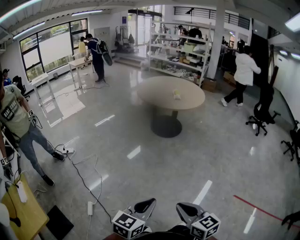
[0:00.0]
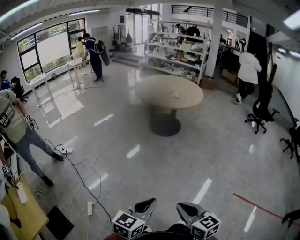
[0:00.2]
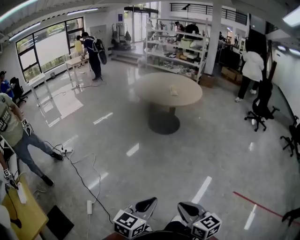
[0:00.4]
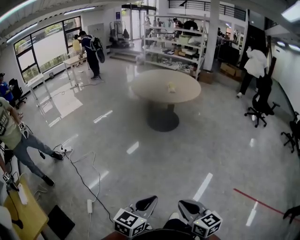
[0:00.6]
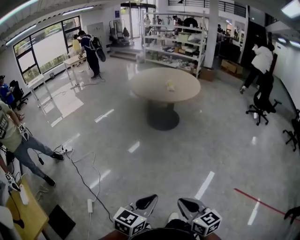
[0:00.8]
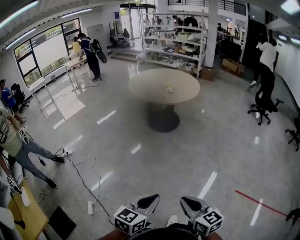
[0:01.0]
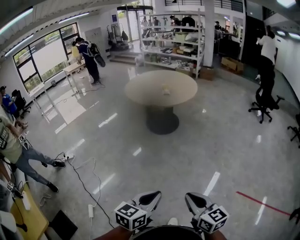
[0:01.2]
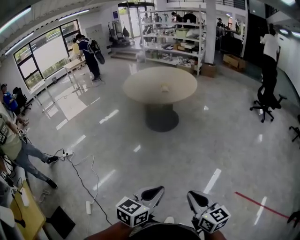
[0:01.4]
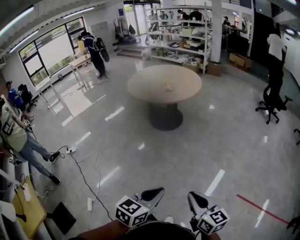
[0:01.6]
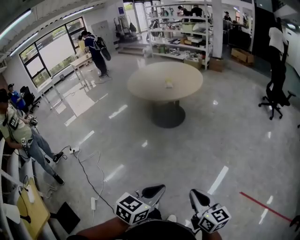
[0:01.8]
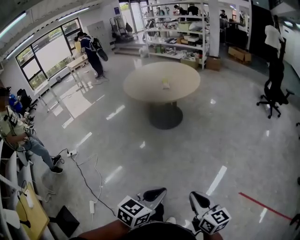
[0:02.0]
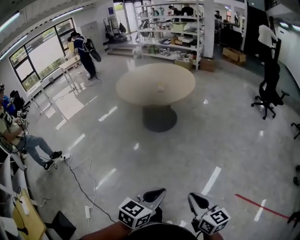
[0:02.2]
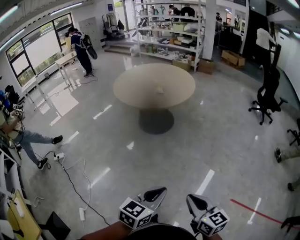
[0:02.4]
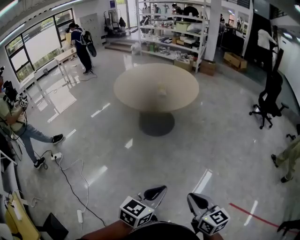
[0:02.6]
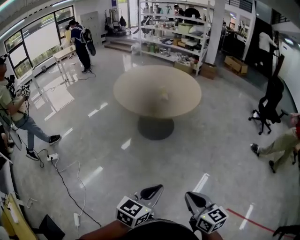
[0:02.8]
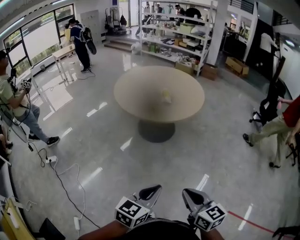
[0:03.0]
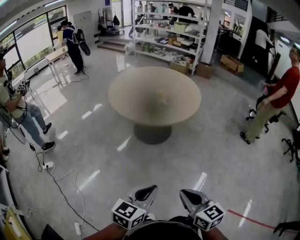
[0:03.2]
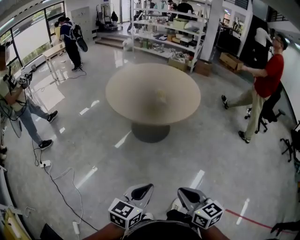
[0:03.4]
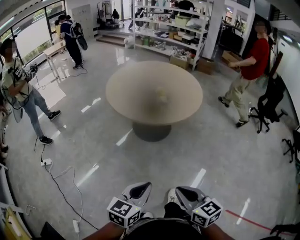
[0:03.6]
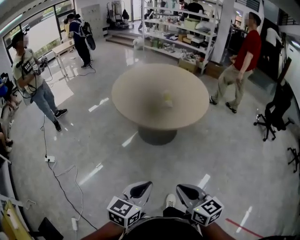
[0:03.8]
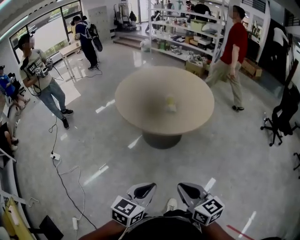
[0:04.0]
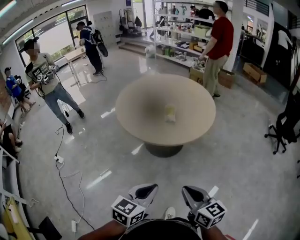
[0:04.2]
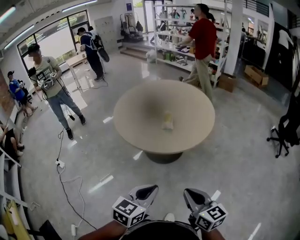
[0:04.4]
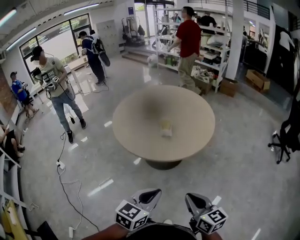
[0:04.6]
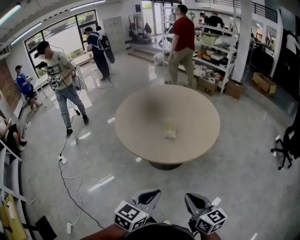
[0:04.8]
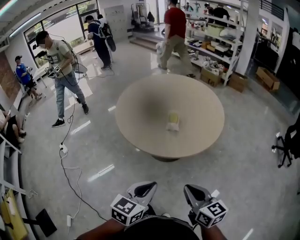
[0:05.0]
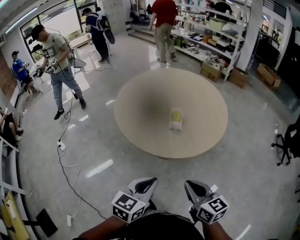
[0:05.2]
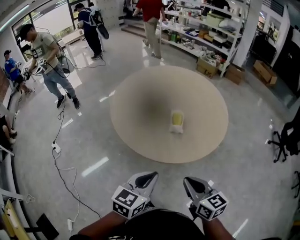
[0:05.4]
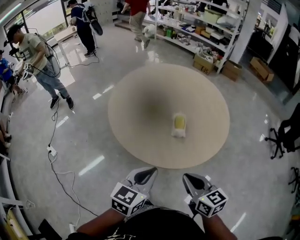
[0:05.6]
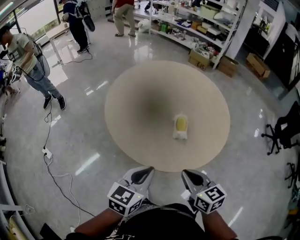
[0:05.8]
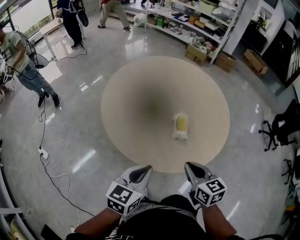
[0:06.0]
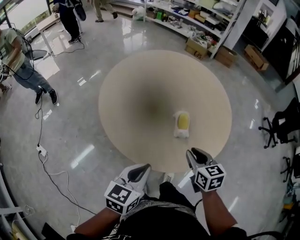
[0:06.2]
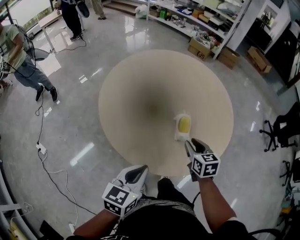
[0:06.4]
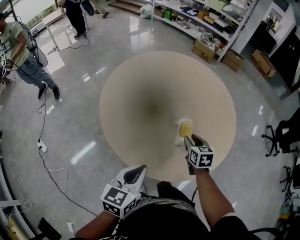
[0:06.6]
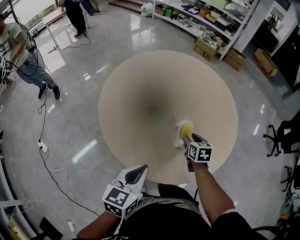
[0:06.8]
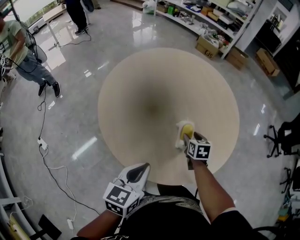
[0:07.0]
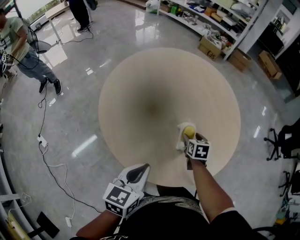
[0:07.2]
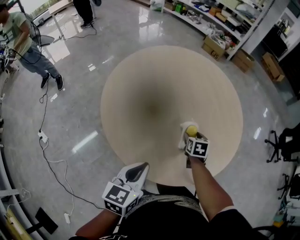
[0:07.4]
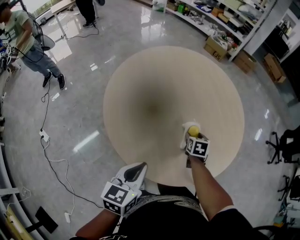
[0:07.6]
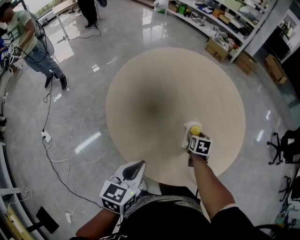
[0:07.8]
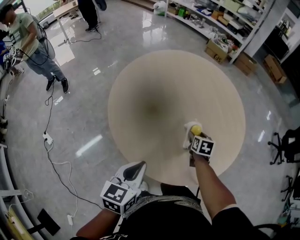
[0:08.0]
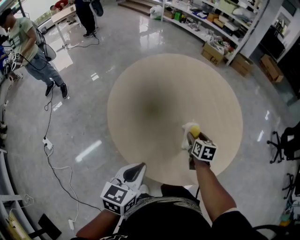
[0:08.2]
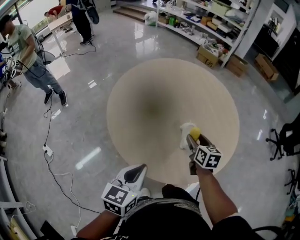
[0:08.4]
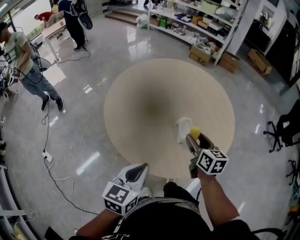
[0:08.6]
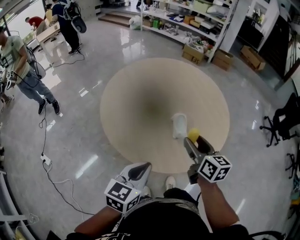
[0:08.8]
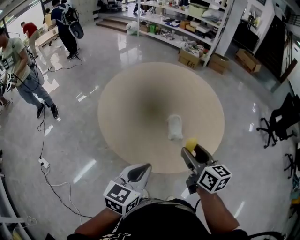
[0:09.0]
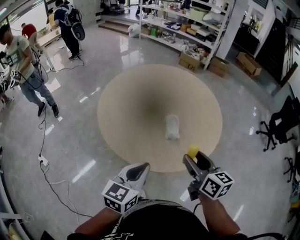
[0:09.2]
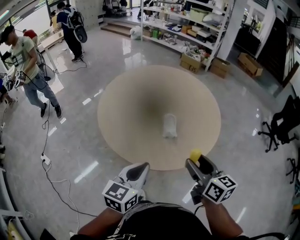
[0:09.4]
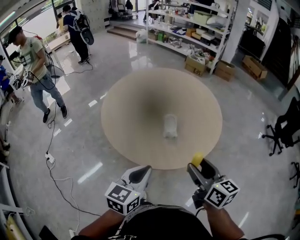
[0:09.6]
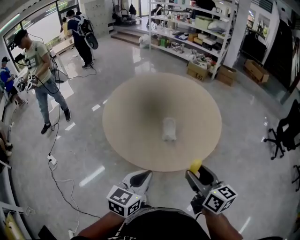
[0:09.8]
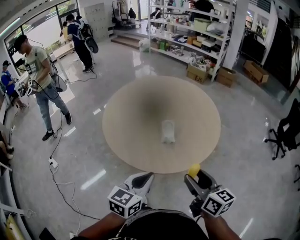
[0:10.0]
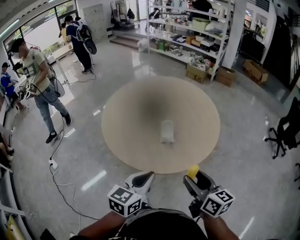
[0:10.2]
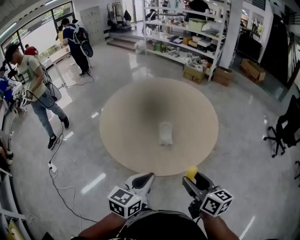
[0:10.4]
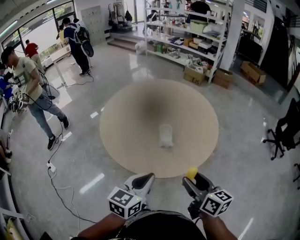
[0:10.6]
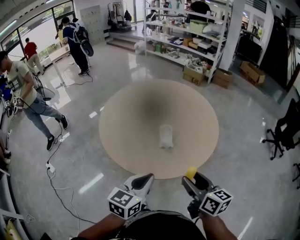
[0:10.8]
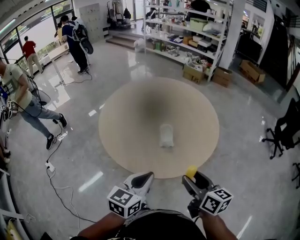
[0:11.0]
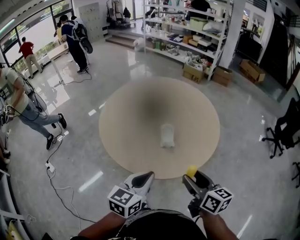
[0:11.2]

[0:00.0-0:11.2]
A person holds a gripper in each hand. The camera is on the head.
0.0 to 1.6 s: Both grippers travel together to the right and forward, approximately 30 cm.
1.6 to 3.2 s: The two grippers travel together, forward and to the left, approximately 40 cm.
3.2 to 4.8 s: The grippers both shift forward and to the right by about 30 cm.
4.8 to 6.4 s: The pair of grippers is taken forward and to the left, roughly 40 cm. The right gripper changes its angle by some 30 degrees, and opens up.
6.4 to 8.0 s: The right gripper heads forward and downward, covering about 15 cm, and opens. Meanwhile the left gripper moves to the left, approximately 5 cm.
8.0 to 9.6 s: The left gripper shifts about 20 cm to the right, backward and upward; the right gripper moves backward and upward, roughly 40 cm, and tilts its fingers some 40 degrees upward.
9.6 to 11.2 s: The grippers move only a little.

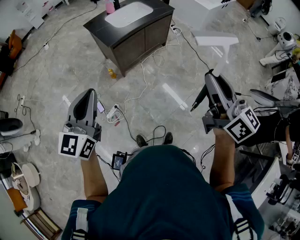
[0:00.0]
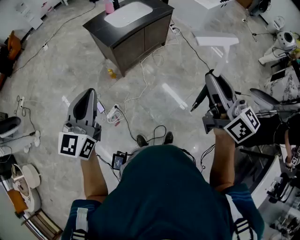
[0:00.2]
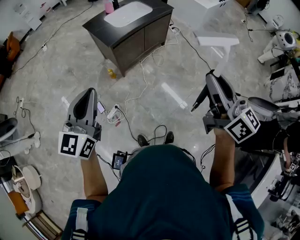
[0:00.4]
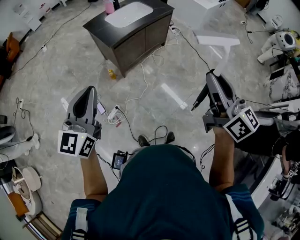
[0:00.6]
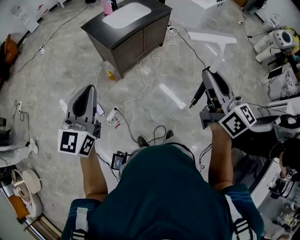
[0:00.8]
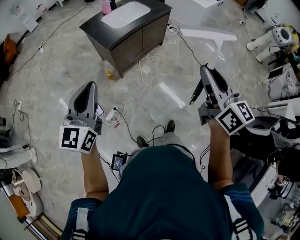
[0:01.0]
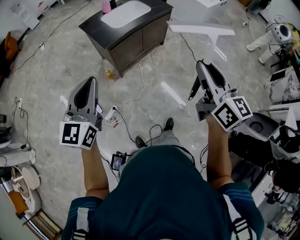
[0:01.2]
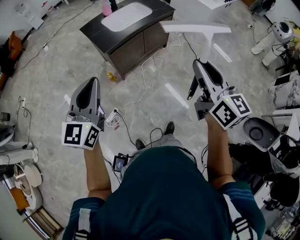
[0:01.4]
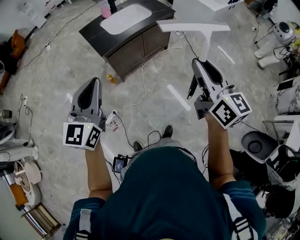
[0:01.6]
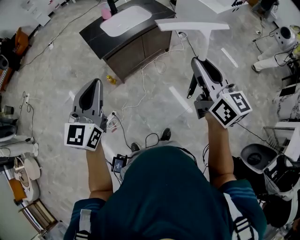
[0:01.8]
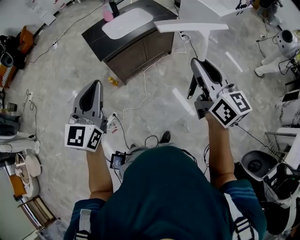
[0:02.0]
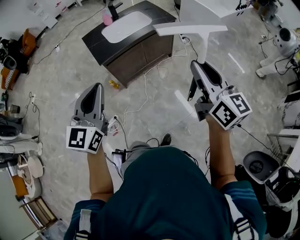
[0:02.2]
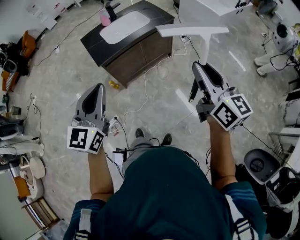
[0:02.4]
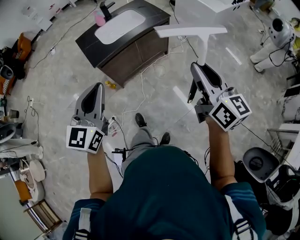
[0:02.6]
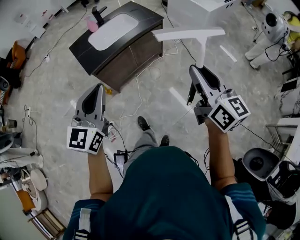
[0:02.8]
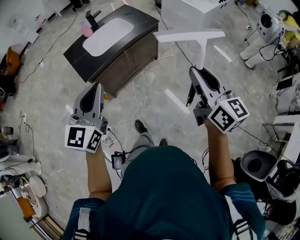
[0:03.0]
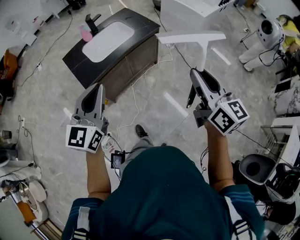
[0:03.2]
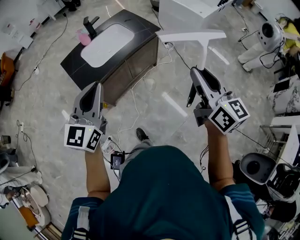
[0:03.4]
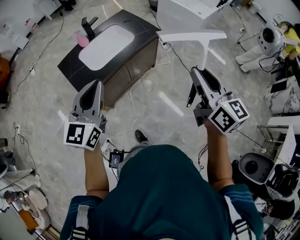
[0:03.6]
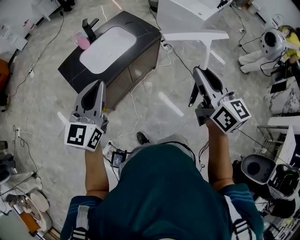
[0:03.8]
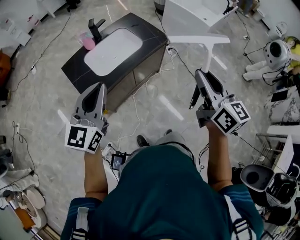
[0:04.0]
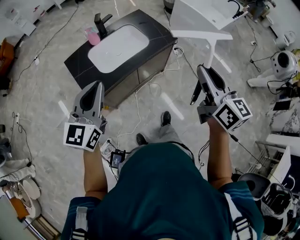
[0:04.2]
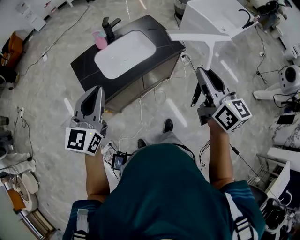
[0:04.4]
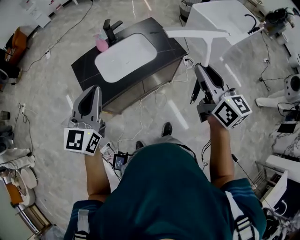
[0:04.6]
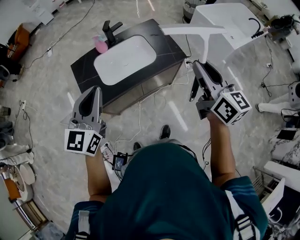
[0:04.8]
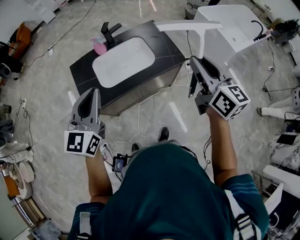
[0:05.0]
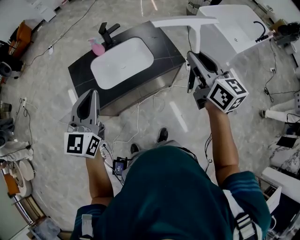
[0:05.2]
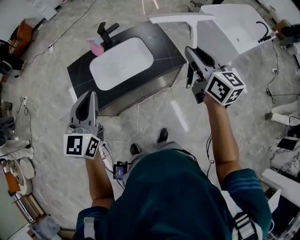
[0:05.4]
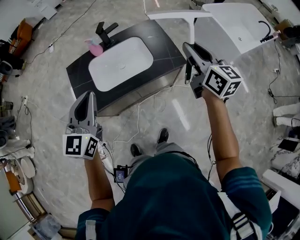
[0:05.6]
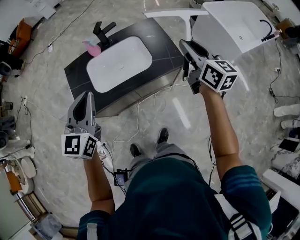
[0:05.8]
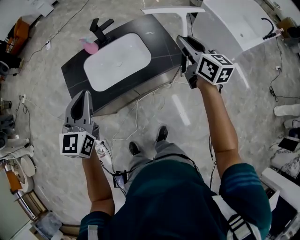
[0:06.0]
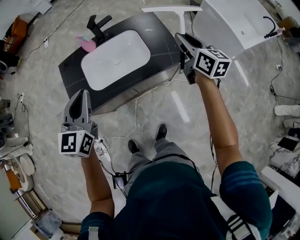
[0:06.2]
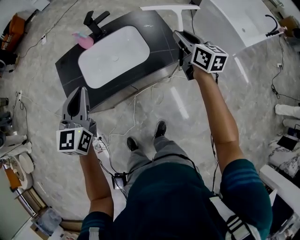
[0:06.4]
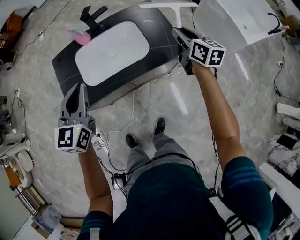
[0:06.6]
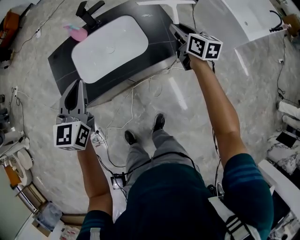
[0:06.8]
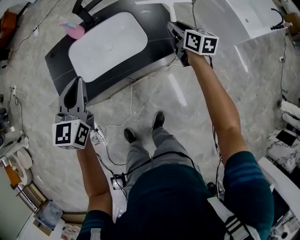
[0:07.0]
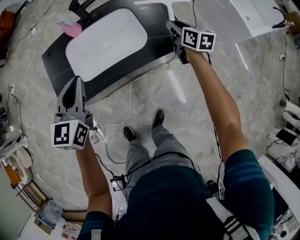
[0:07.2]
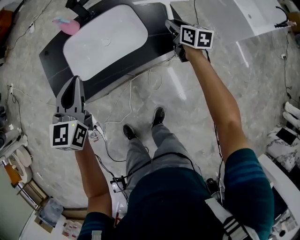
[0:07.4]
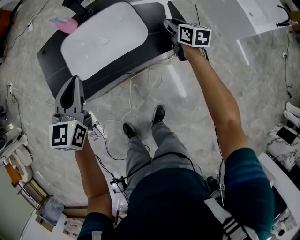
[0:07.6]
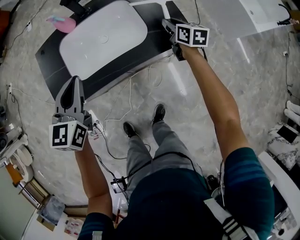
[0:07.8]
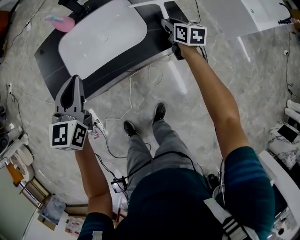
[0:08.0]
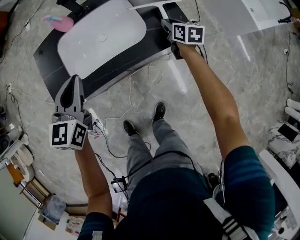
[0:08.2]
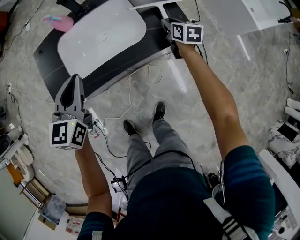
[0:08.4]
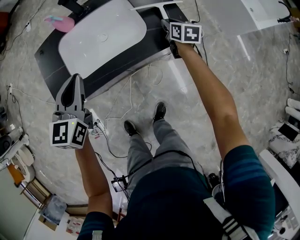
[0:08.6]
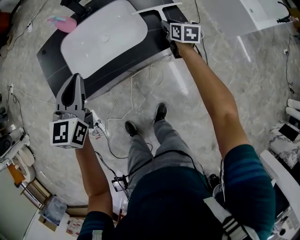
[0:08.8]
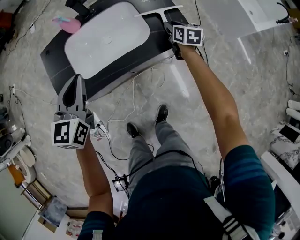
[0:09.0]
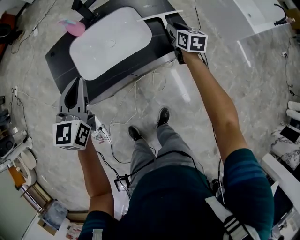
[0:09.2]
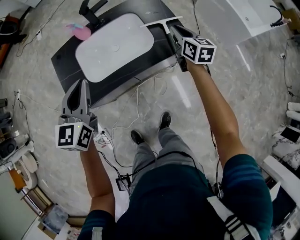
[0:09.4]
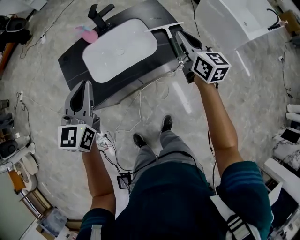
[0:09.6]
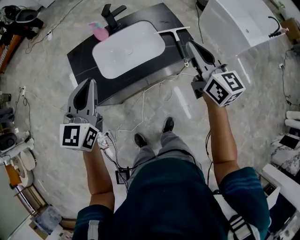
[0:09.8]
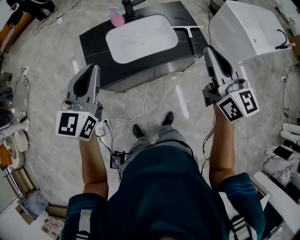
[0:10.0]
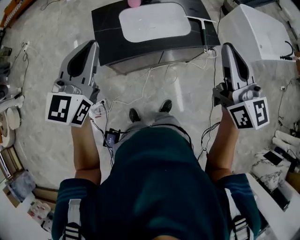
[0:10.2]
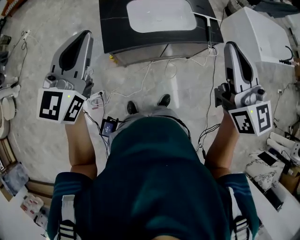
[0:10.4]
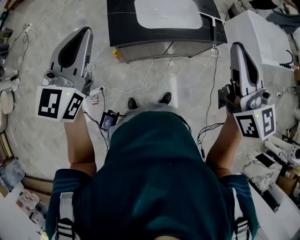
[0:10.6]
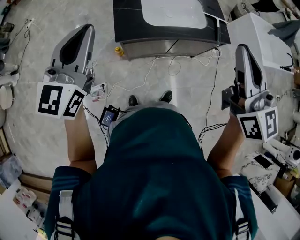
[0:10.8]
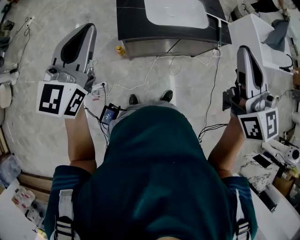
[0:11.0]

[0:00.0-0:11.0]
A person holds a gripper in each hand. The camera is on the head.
0.0 to 1.6 s: The right gripper is displaced forward by approximately 15 cm; the left gripper is displaced forward and to the right by some 15 cm.
1.6 to 3.2 s: Both grippers travel together forward and to the right, some 20 cm.
3.2 to 4.8 s: Both grippers travel together forward, about 25 cm.
4.8 to 6.2 s: The right gripper shifts some 25 cm forward and downward; the left gripper travels forward and downward by about 10 cm.
6.2 to 7.8 s: The right gripper goes approximately 25 cm downward, and rotates roughly 20 degrees; the left gripper is displaced downward and forward by some 15 cm.
7.8 to 9.4 s: The left gripper is displaced upward by about 5 cm; the right gripper shifts some 10 cm upward.
9.4 to 11.0 s: The left gripper goes roughly 30 cm to the left, backward and upward. Meanwhile the right gripper travels upward, backward and to the left by roughly 50 cm, and turns by about 30 degrees.

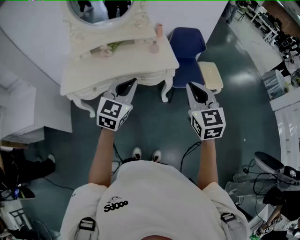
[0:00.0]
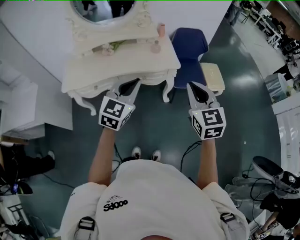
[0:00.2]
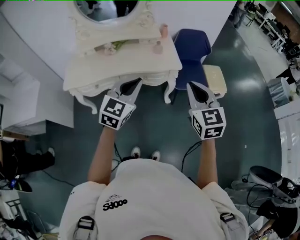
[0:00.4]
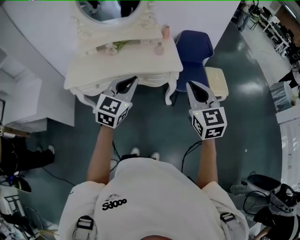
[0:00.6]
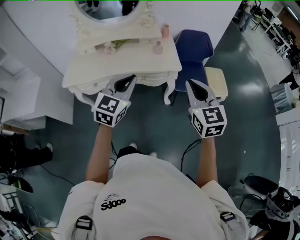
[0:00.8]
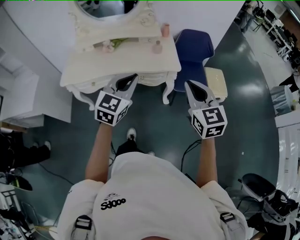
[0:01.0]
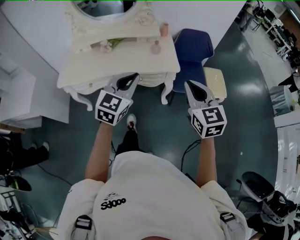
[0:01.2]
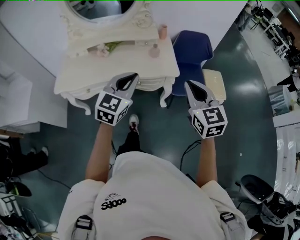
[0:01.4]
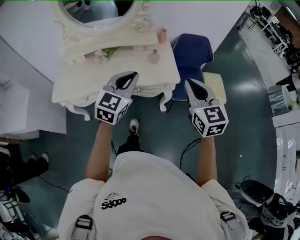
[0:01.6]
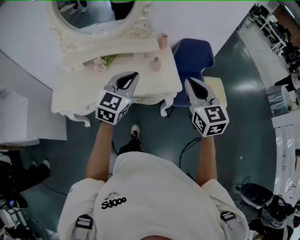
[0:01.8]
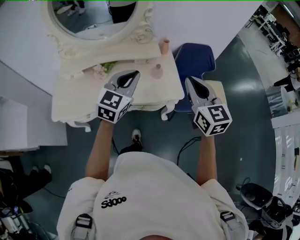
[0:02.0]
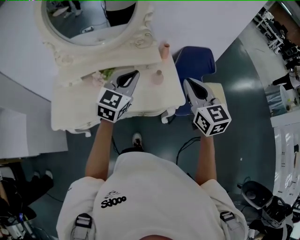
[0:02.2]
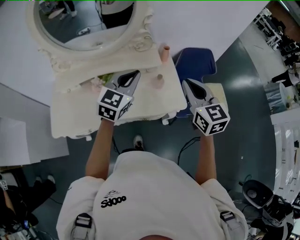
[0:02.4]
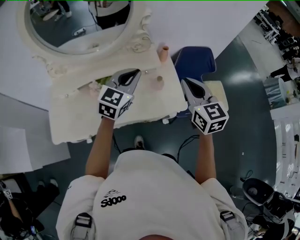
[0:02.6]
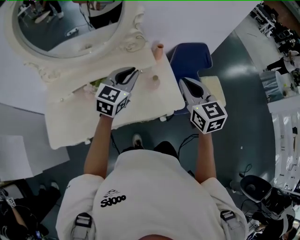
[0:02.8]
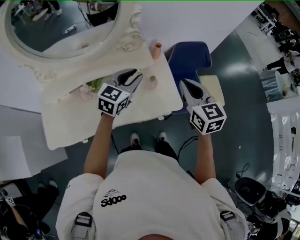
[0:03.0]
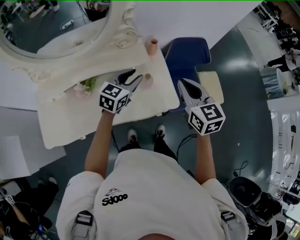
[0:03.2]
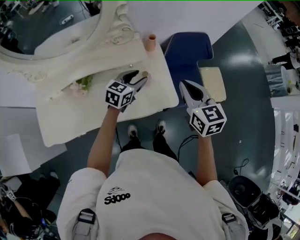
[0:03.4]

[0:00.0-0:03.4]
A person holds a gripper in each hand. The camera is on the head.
0.0 to 1.6 s: The grippers both shift forward by approximately 20 cm.
1.6 to 3.4 s: The left gripper is displaced forward and downward by roughly 40 cm, changes its angle by roughly 30 degrees, and opens up. The right gripper travels forward by some 30 cm.
